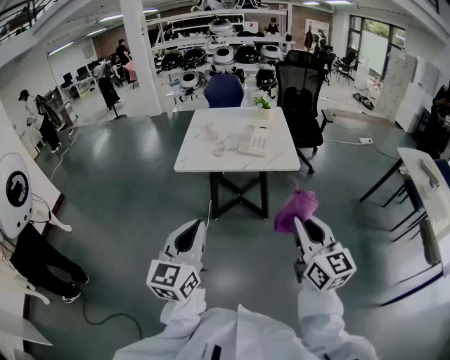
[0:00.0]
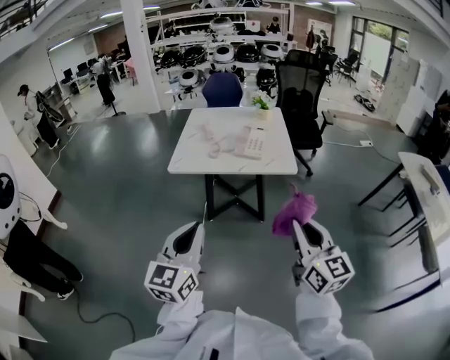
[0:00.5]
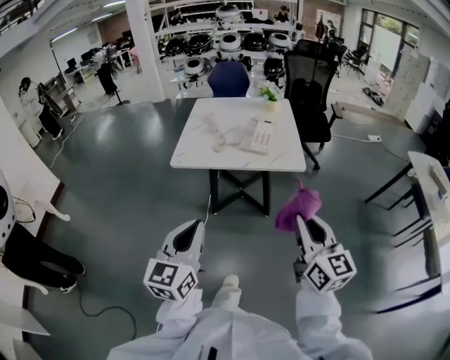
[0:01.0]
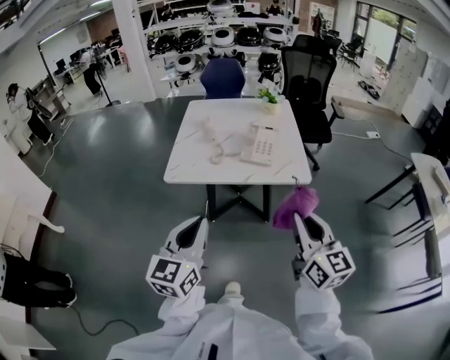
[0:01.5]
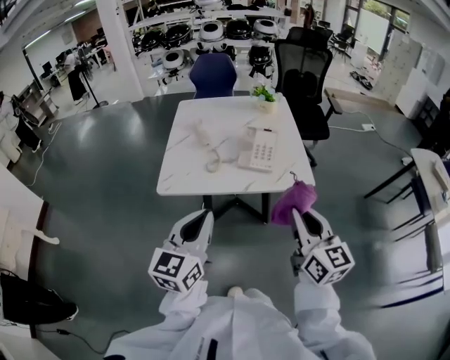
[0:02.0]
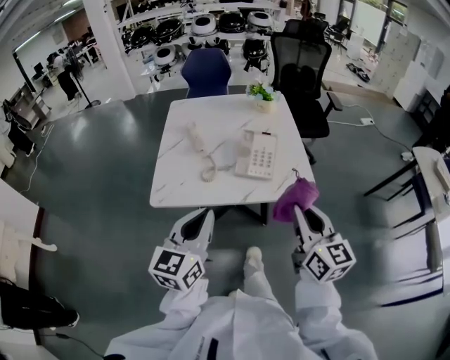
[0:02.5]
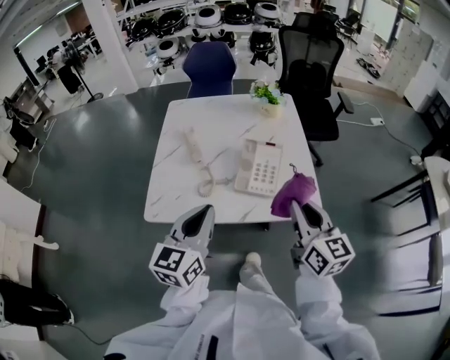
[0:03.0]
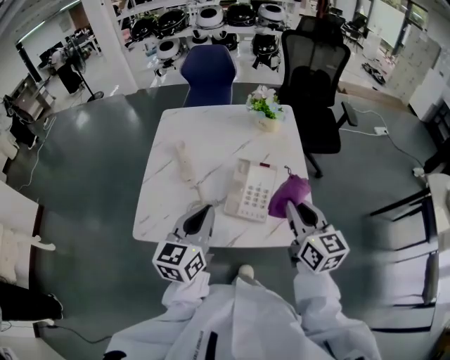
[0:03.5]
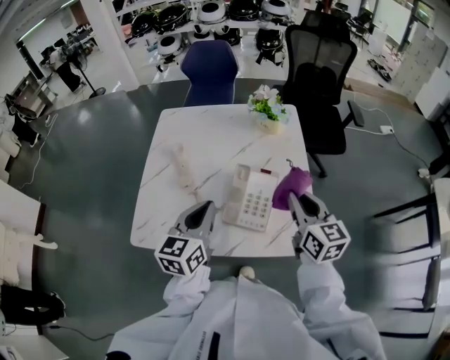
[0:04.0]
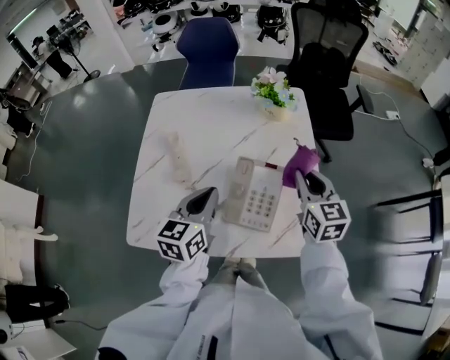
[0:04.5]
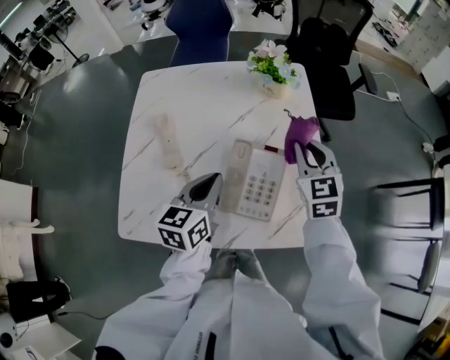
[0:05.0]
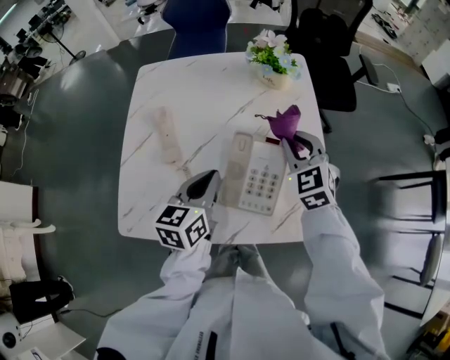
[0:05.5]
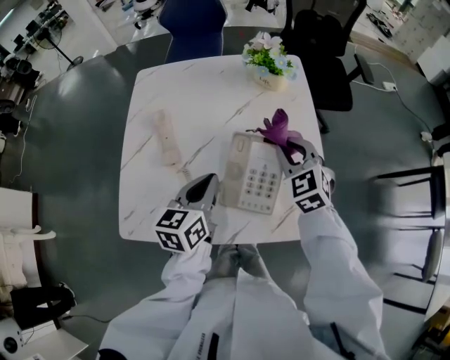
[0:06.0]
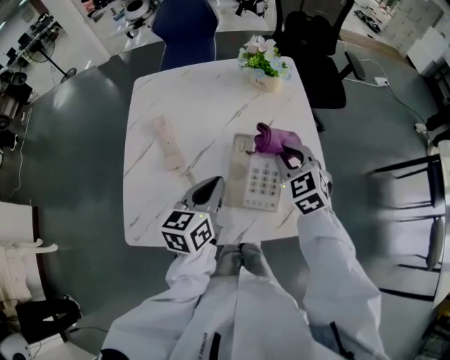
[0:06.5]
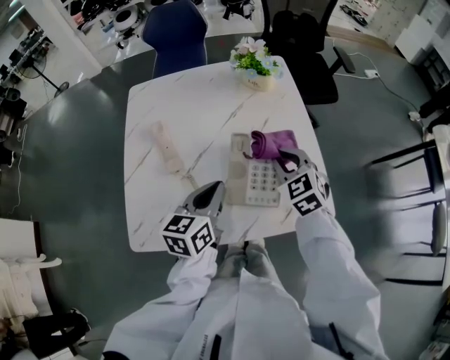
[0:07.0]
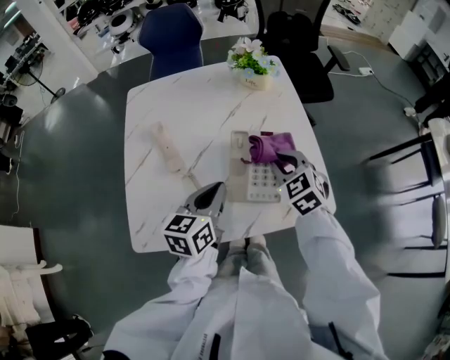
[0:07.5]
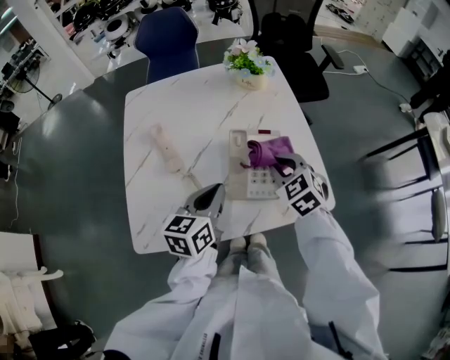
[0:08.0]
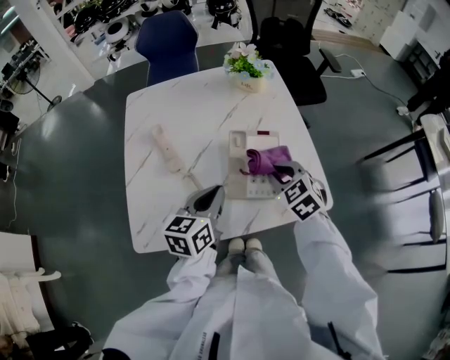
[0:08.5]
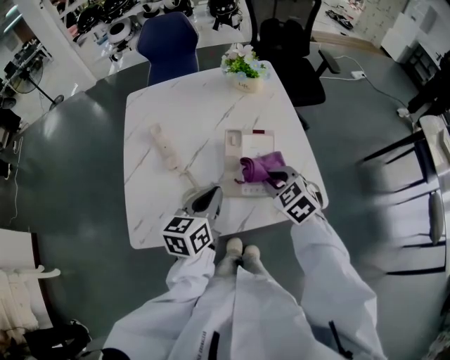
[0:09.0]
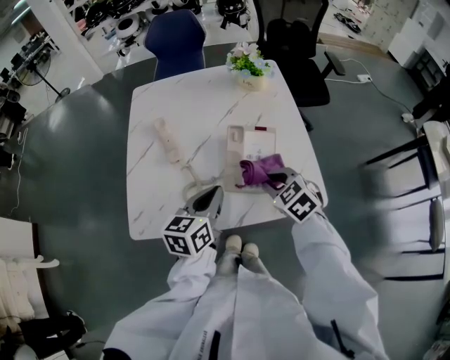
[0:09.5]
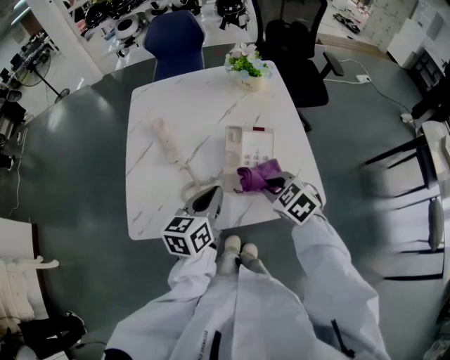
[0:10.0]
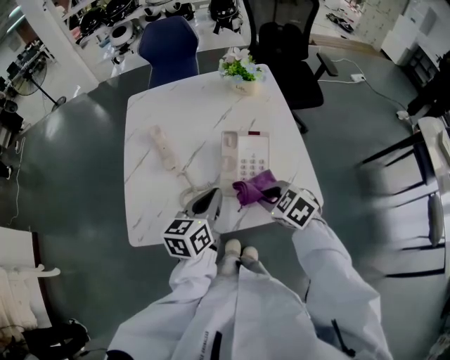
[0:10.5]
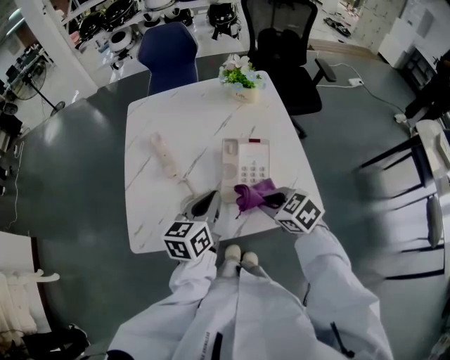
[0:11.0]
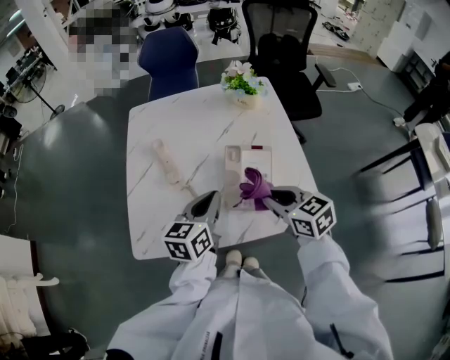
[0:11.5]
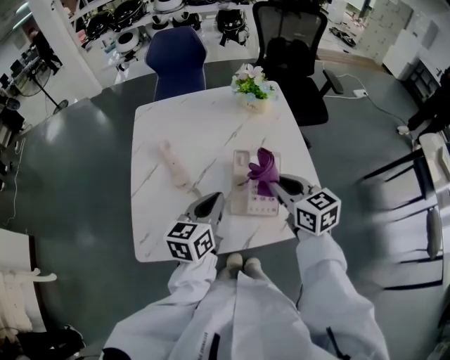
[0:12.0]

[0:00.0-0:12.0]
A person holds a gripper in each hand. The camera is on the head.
0:00.0 to 0:02.0: Both grippers move forward, approximately 30 cm.
0:02.0 to 0:04.0: The grippers both shift forward by roughly 35 cm.
0:04.0 to 0:06.0: The left gripper is displaced downward and forward by about 10 cm, while the right gripper is displaced forward, downward and to the left by roughly 15 cm, and changes its angle by about 40 degrees.
0:06.0 to 0:08.0: The right gripper travels backward by some 10 cm.
0:08.0 to 0:10.0: The right gripper travels backward by roughly 10 cm.
0:10.0 to 0:12.0: The left gripper is displaced forward by roughly 5 cm. The right gripper travels upward and forward by about 10 cm, and rotates roughly 40 degrees.

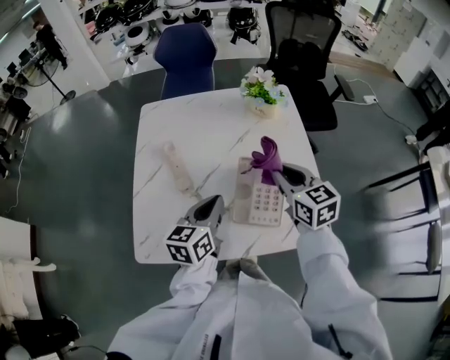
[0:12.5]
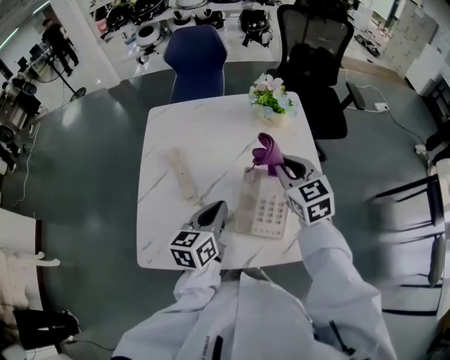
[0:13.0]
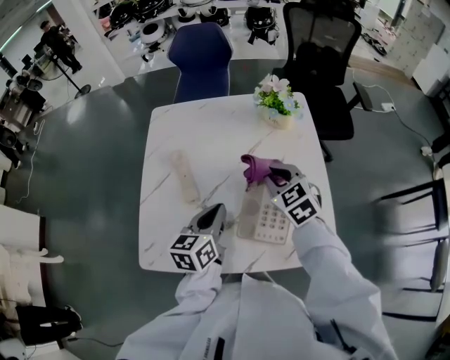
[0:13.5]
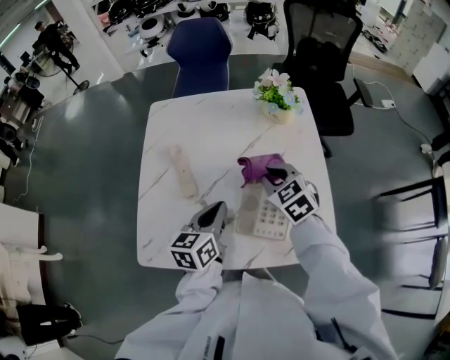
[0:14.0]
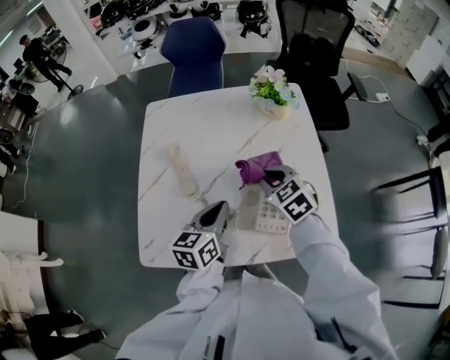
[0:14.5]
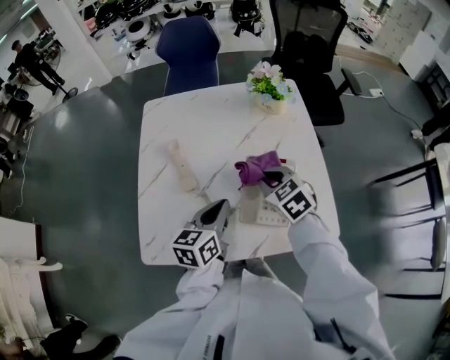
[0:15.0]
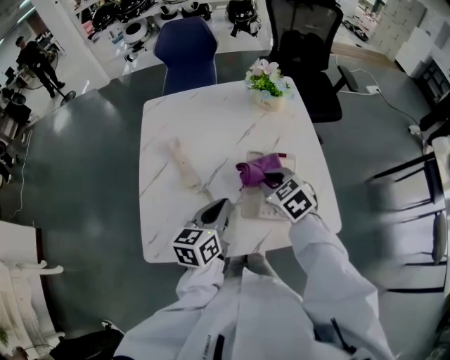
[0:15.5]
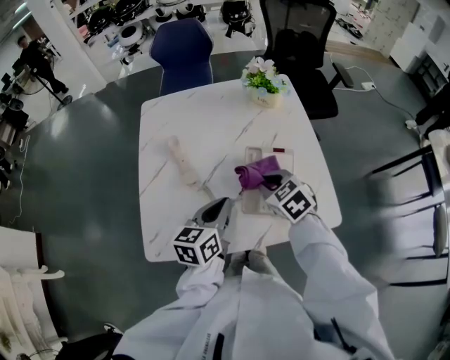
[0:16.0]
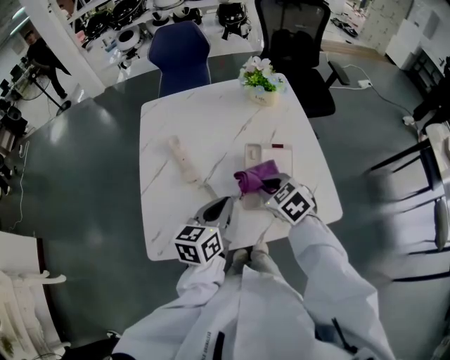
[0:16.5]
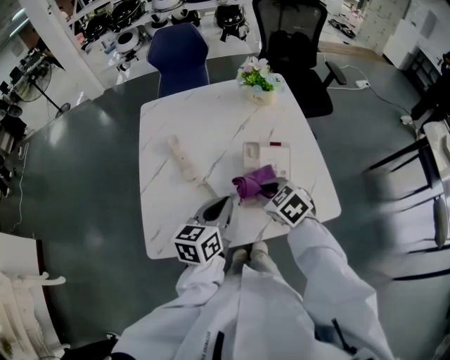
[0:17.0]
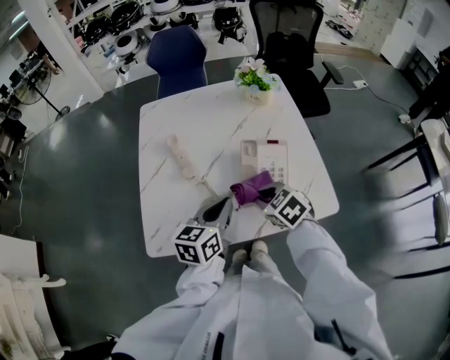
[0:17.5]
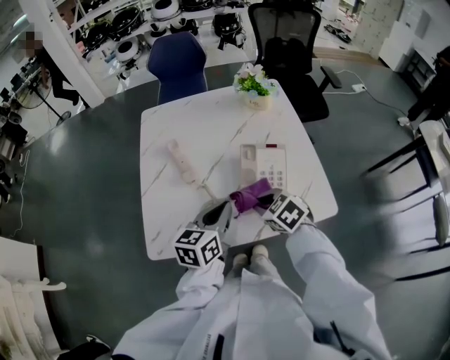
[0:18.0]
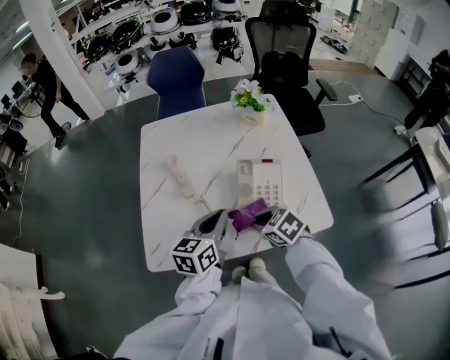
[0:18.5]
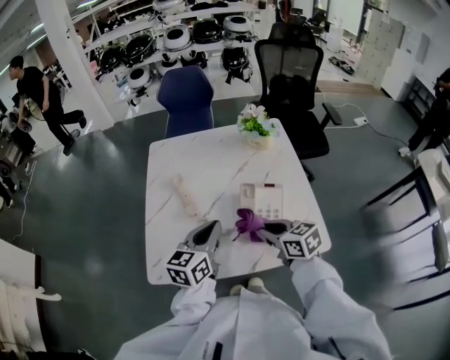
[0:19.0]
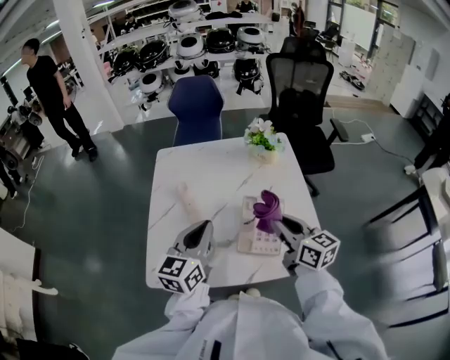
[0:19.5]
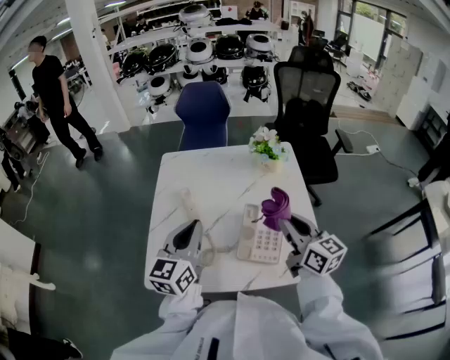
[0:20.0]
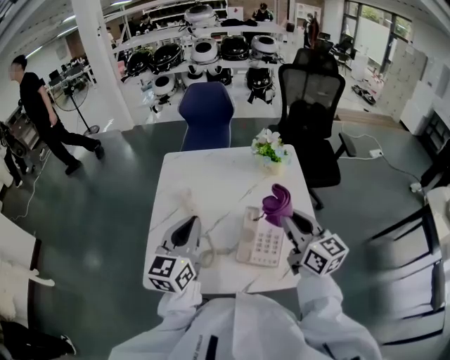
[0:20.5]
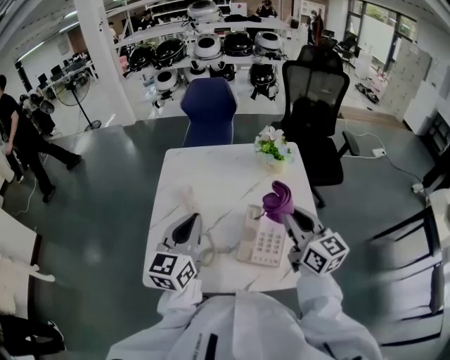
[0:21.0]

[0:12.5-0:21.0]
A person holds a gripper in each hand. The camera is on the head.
0:12.5 to 0:14.5: The right gripper heads downward and to the left, covering approximately 10 cm, and changes its angle by some 30 degrees.
0:14.5 to 0:16.5: The left gripper is displaced backward by some 5 cm; the right gripper is displaced backward by about 10 cm.
0:16.5 to 0:19.0: Both grippers travel together upward, about 5 cm. The right gripper swivels some 30 degrees.
0:19.0 to 0:21.0: The right gripper is displaced upward, to the right and forward by approximately 15 cm, and swivels roughly 30 degrees, while the left gripper travels upward by some 10 cm, and turns by approximately 20 degrees.

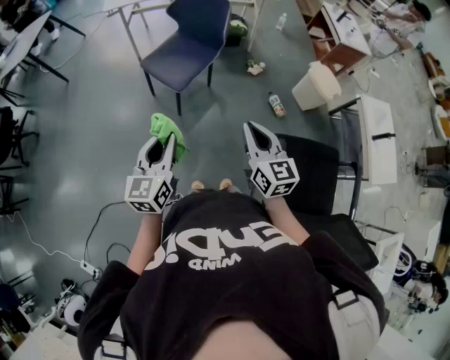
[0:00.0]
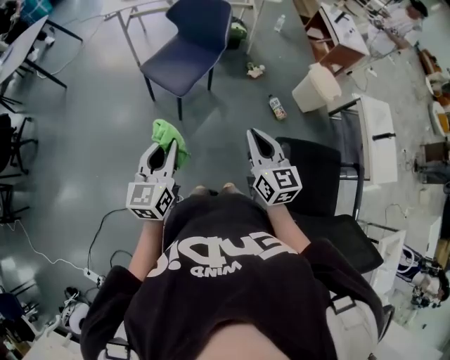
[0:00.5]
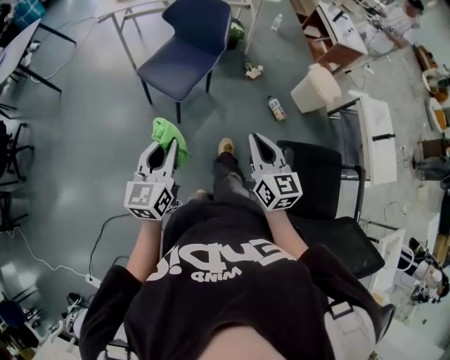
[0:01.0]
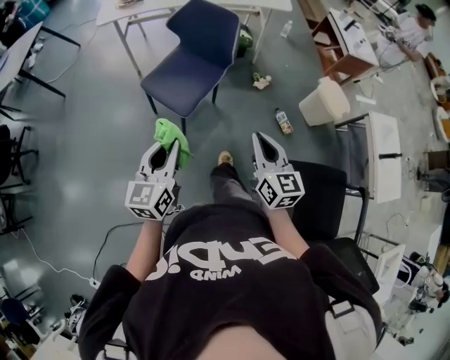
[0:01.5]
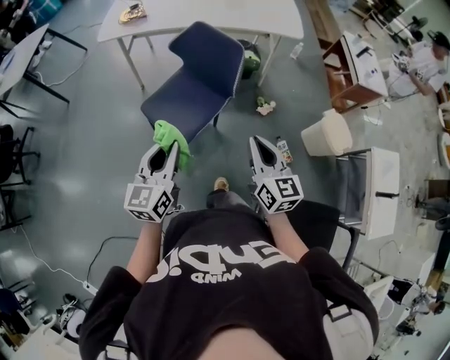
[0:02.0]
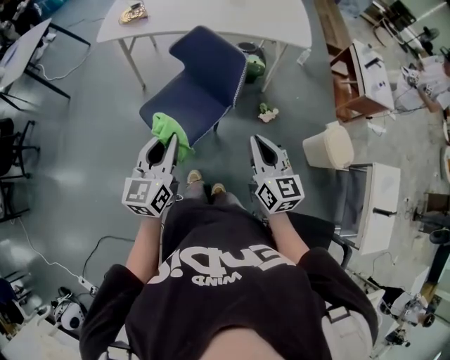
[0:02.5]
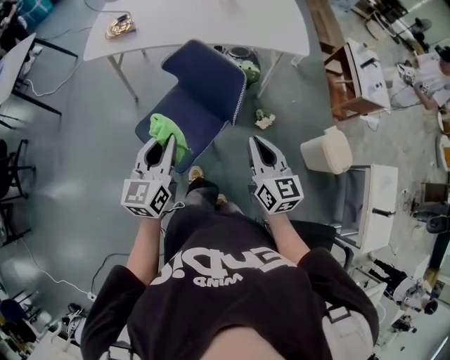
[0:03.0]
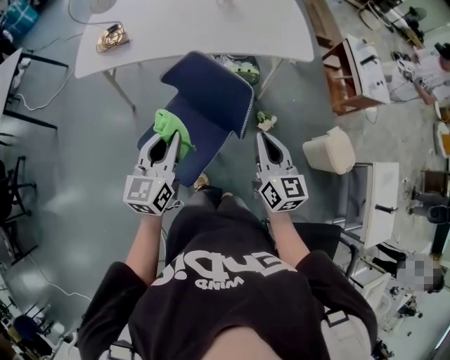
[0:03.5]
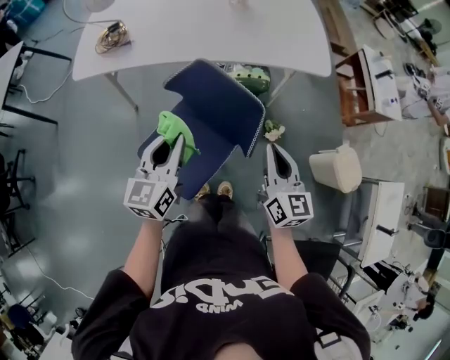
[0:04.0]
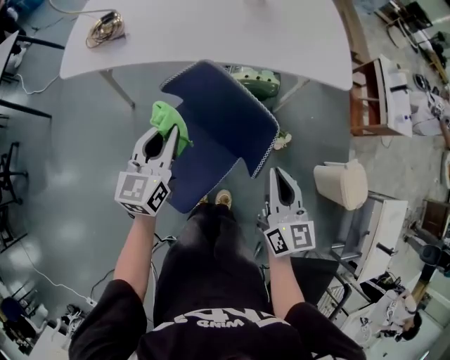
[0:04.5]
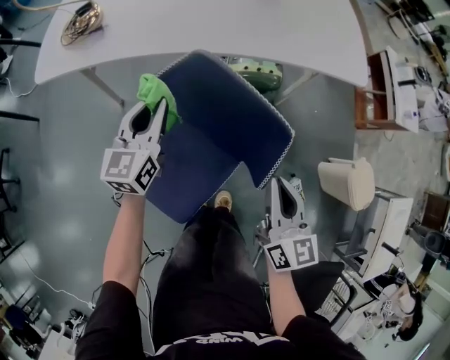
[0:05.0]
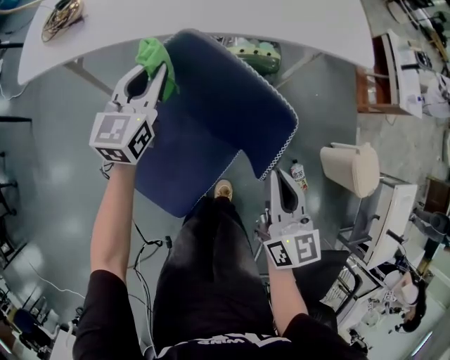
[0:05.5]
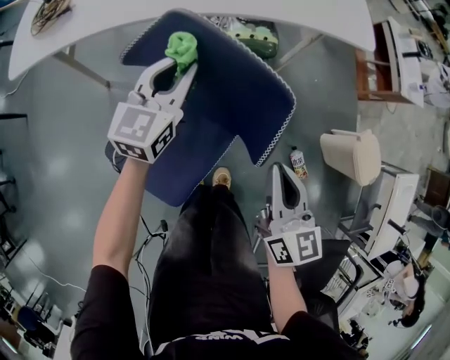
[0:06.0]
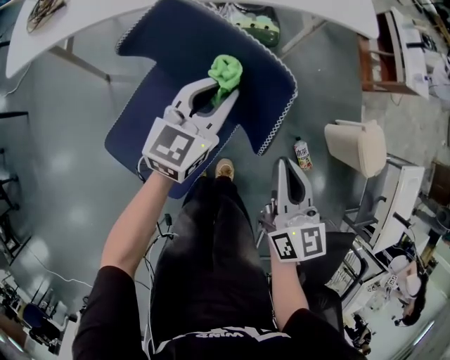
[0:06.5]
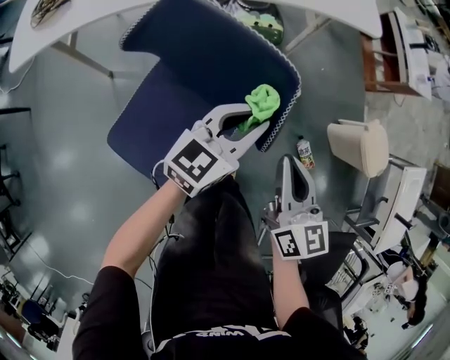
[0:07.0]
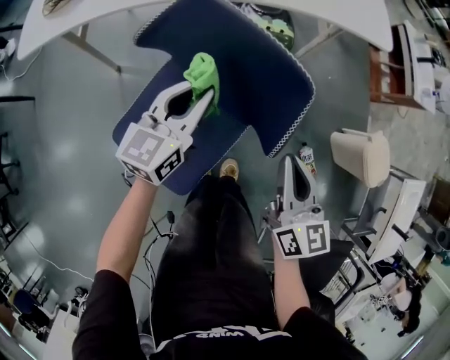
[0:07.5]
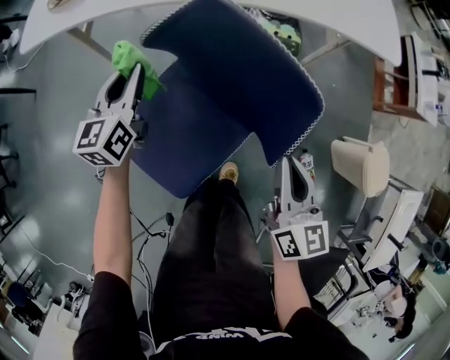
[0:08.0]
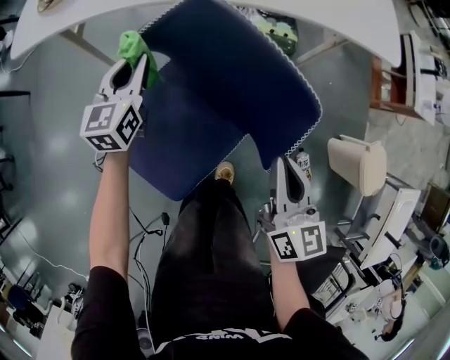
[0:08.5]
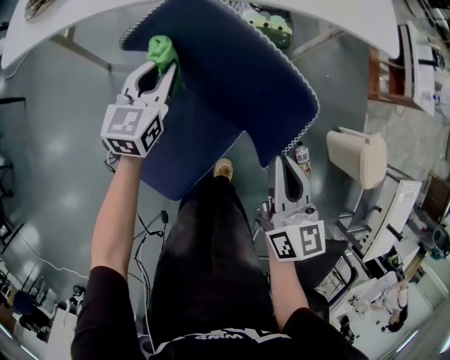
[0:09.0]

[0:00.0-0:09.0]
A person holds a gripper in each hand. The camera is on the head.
0:00.0 to 0:02.0: The two grippers go some 30 cm forward.
0:02.0 to 0:04.5: Both grippers travel together forward, about 40 cm.
0:04.5 to 0:07.0: The right gripper shifts about 10 cm downward. Meanwhile the left gripper moves to the right and downward, about 25 cm, and turns by about 40 degrees.
0:07.0 to 0:09.0: The right gripper changes place by about 5 cm, while the left gripper moves approximately 25 cm, and changes its angle by about 30 degrees.
